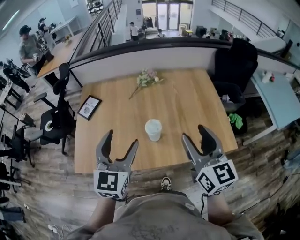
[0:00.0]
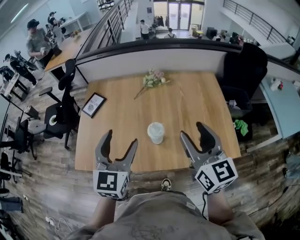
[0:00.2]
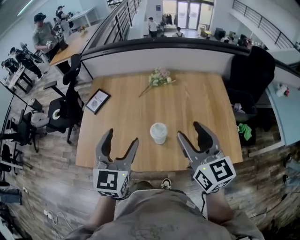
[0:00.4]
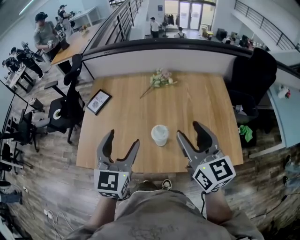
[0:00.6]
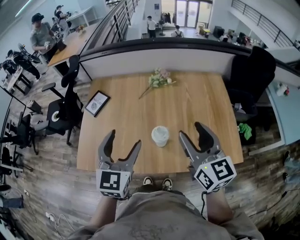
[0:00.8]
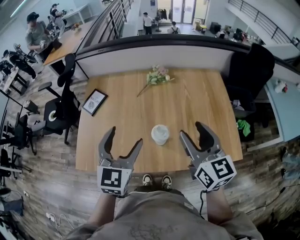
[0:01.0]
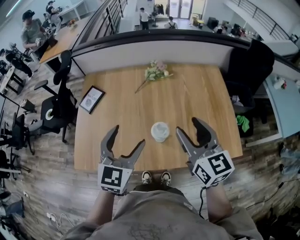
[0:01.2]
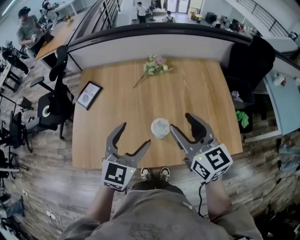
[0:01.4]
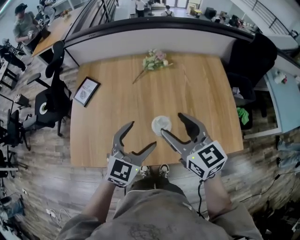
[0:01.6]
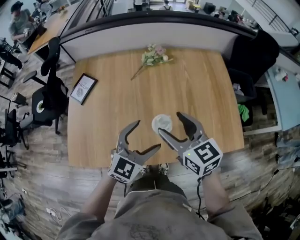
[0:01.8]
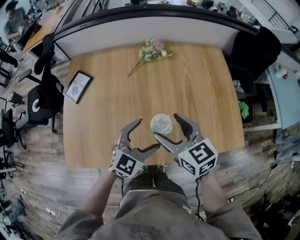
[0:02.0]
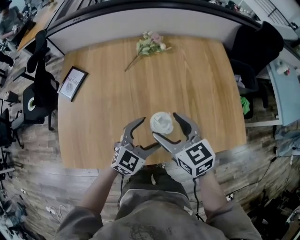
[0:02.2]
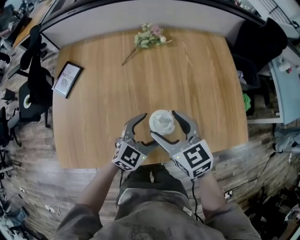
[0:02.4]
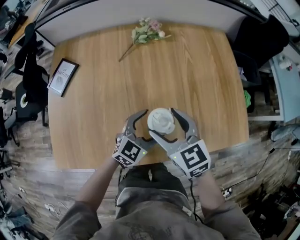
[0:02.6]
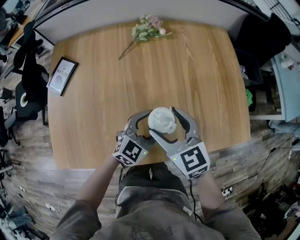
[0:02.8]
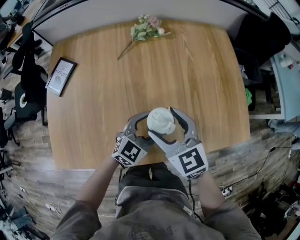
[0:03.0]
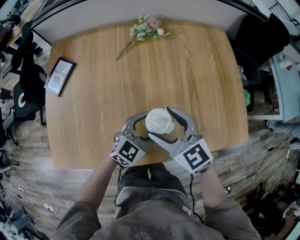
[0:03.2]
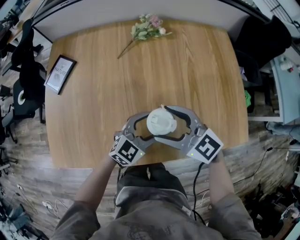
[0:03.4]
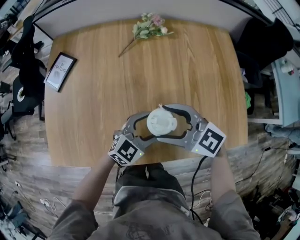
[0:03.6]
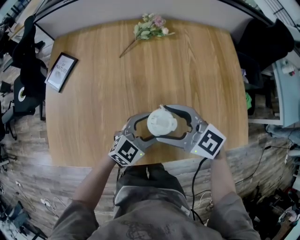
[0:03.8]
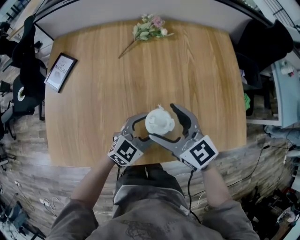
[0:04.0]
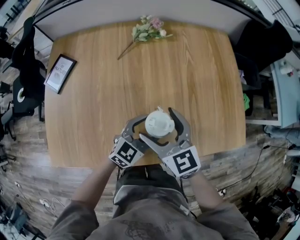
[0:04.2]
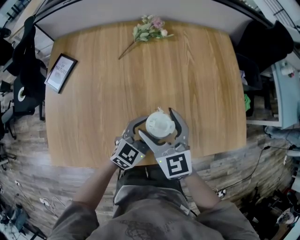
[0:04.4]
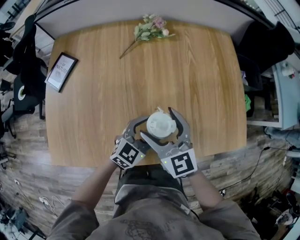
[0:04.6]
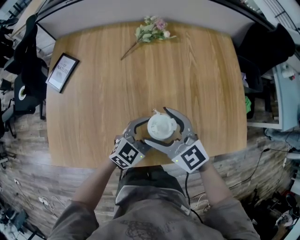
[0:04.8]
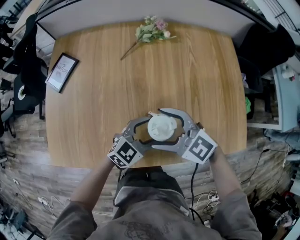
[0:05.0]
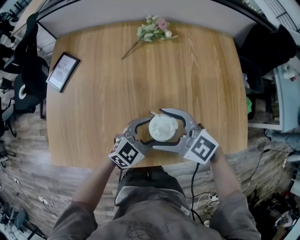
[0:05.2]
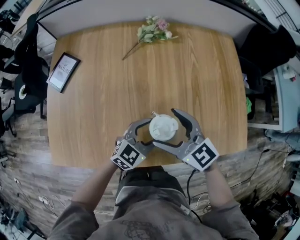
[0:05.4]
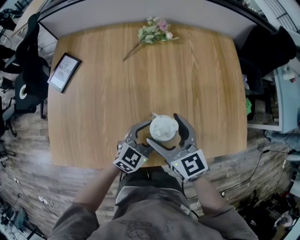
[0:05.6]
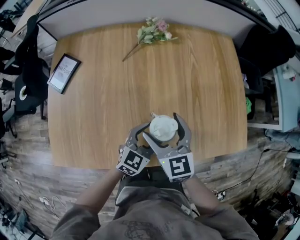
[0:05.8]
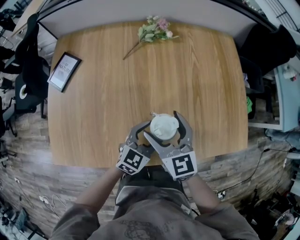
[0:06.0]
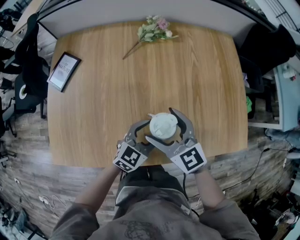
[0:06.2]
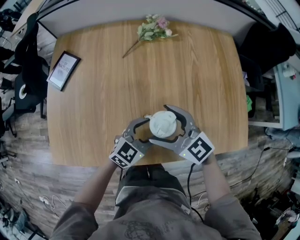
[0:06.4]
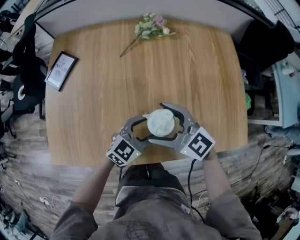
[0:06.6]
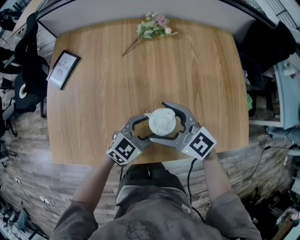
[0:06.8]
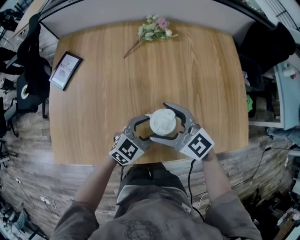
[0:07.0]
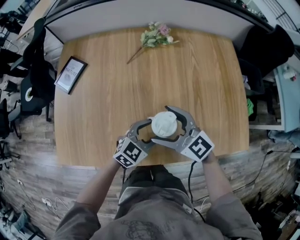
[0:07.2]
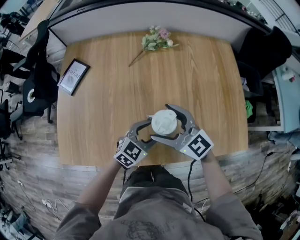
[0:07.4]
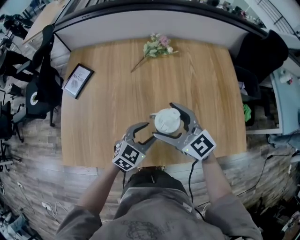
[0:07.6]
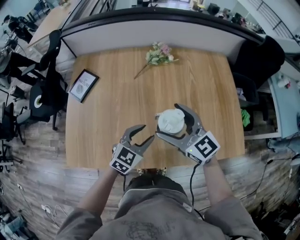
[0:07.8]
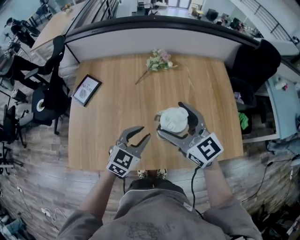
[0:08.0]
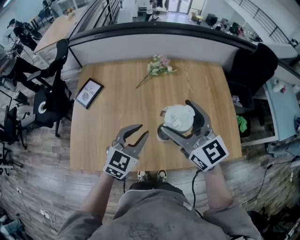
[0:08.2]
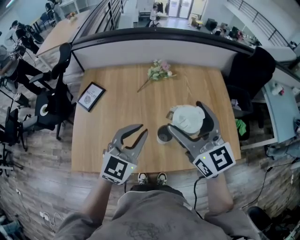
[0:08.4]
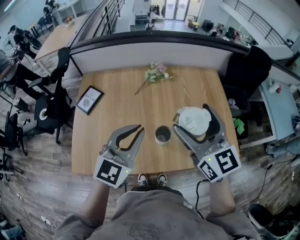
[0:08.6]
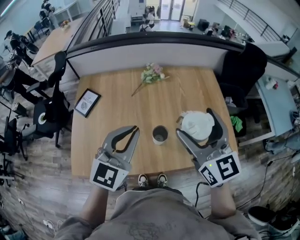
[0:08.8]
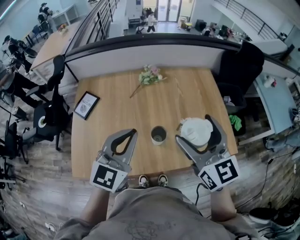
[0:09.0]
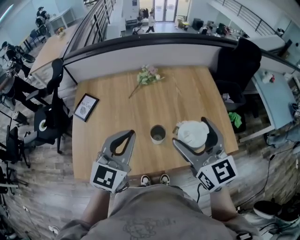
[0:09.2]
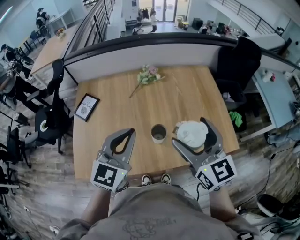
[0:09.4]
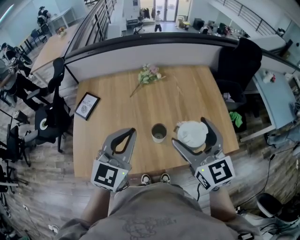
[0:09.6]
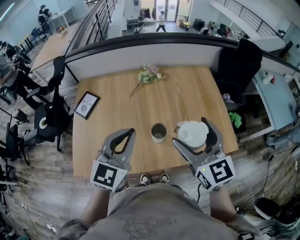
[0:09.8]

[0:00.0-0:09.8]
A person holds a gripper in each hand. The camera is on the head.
0.0 to 1.4 s: The left gripper heads downward and forward, covering roughly 10 cm. Meanwhile the right gripper travels forward and to the left by about 15 cm.
1.4 to 2.8 s: The grippers both shift downward by about 25 cm. The left gripper swivels some 30 degrees.
5.6 to 7.0 s: The right gripper changes its angle by roughly 30 degrees.
7.0 to 8.4 s: Both grippers travel together upward, roughly 30 cm. The left gripper turns by roughly 30 degrees, and closes its fingers; the right gripper rotates about 30 degrees.
8.4 to 9.8 s: The left gripper moves some 5 cm. The right gripper moves backward and to the right, about 10 cm.

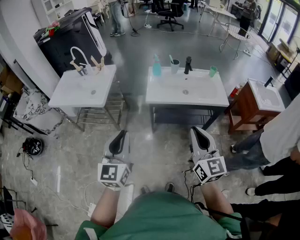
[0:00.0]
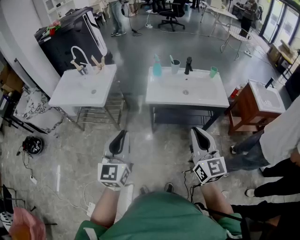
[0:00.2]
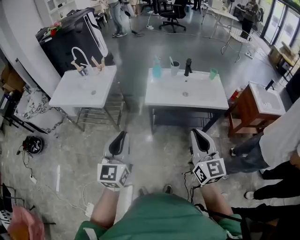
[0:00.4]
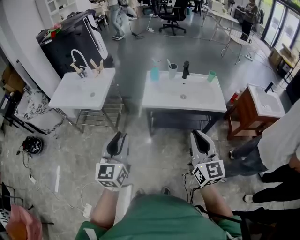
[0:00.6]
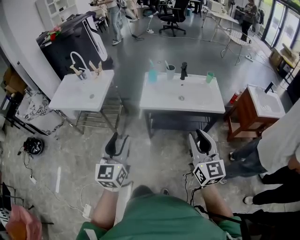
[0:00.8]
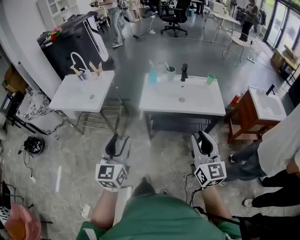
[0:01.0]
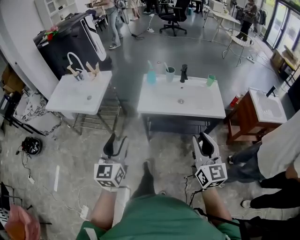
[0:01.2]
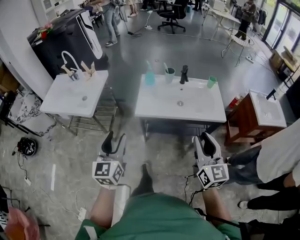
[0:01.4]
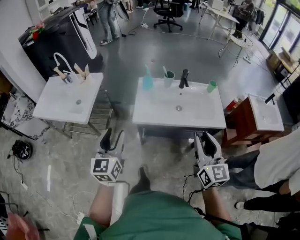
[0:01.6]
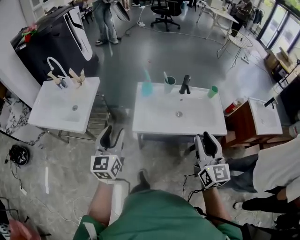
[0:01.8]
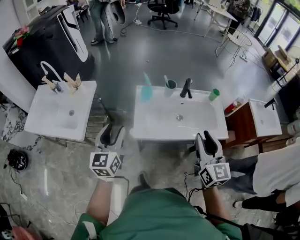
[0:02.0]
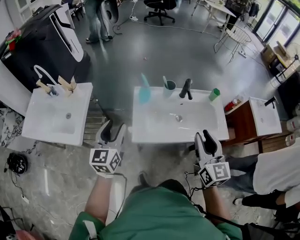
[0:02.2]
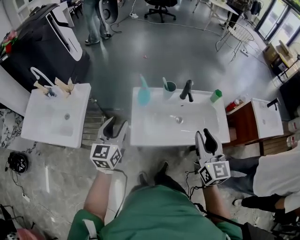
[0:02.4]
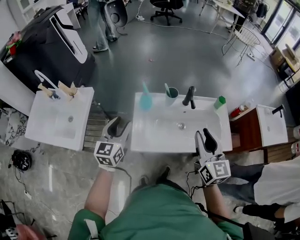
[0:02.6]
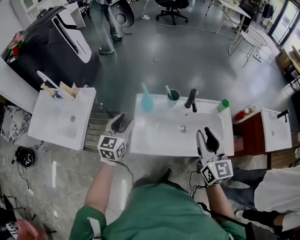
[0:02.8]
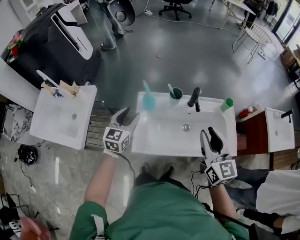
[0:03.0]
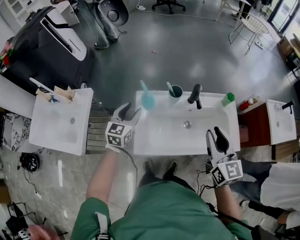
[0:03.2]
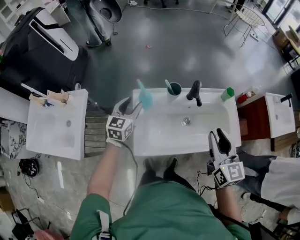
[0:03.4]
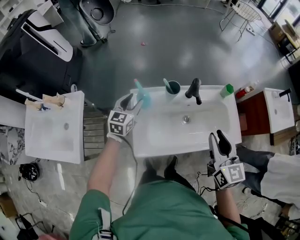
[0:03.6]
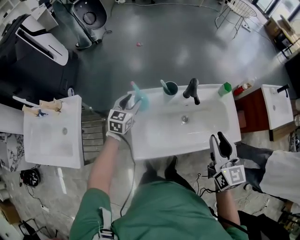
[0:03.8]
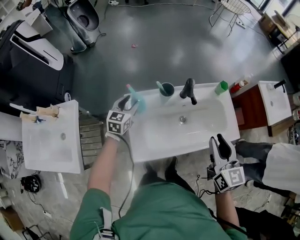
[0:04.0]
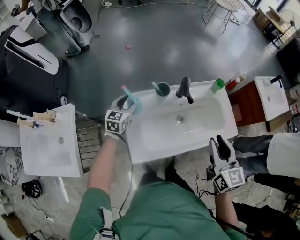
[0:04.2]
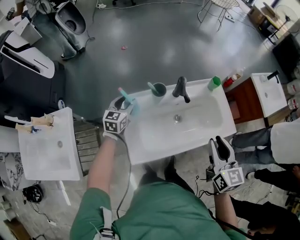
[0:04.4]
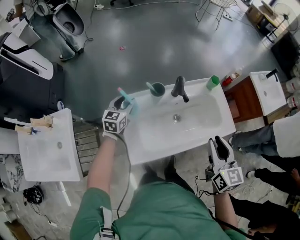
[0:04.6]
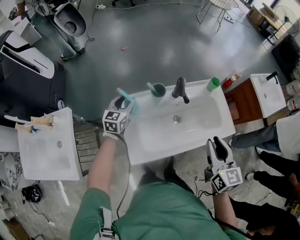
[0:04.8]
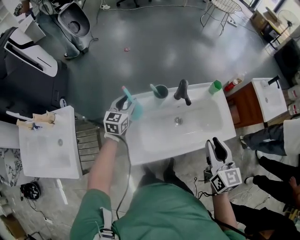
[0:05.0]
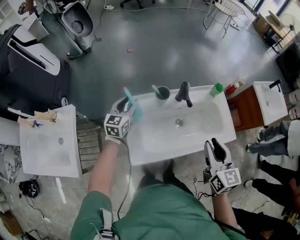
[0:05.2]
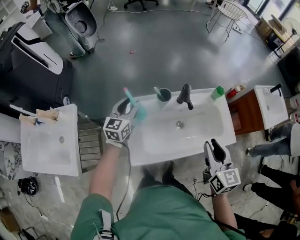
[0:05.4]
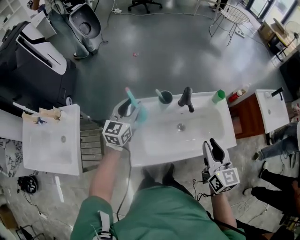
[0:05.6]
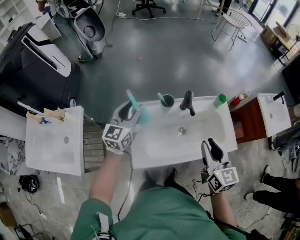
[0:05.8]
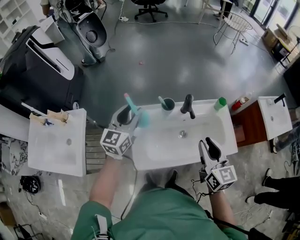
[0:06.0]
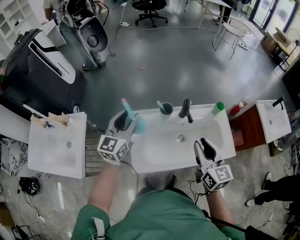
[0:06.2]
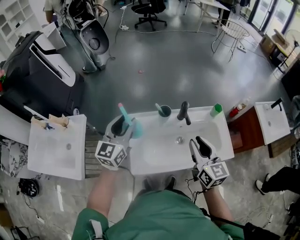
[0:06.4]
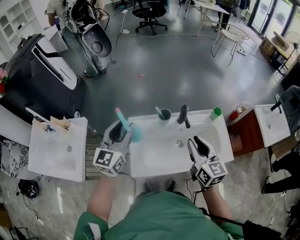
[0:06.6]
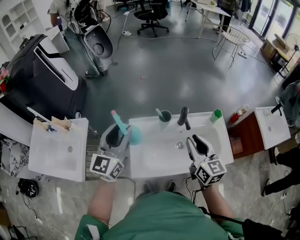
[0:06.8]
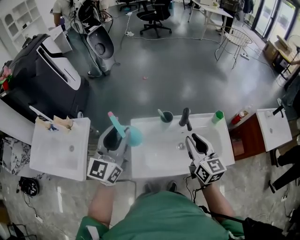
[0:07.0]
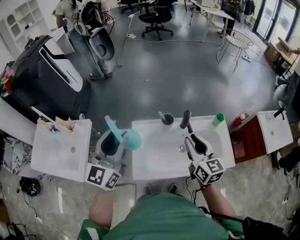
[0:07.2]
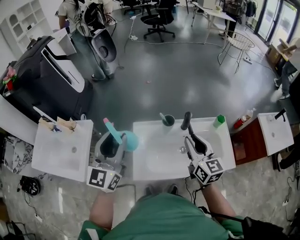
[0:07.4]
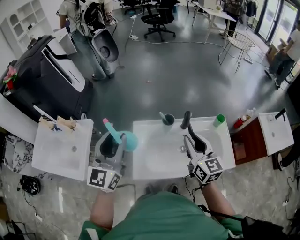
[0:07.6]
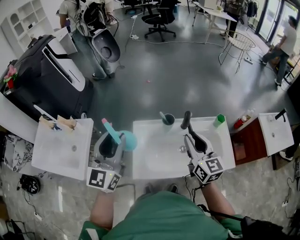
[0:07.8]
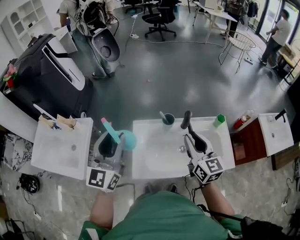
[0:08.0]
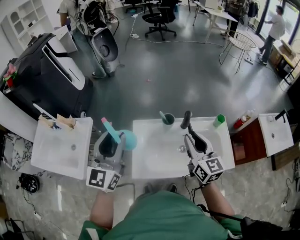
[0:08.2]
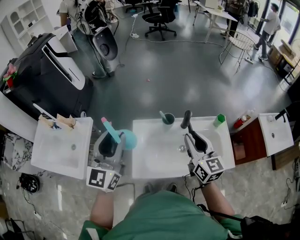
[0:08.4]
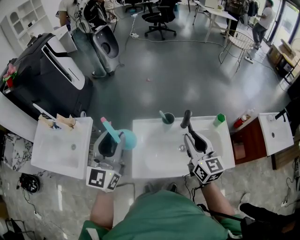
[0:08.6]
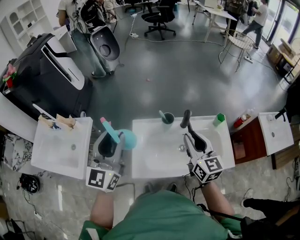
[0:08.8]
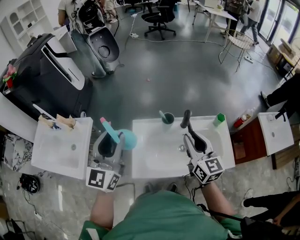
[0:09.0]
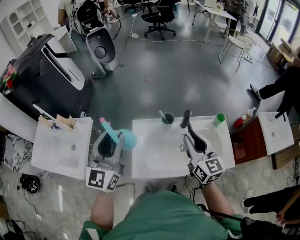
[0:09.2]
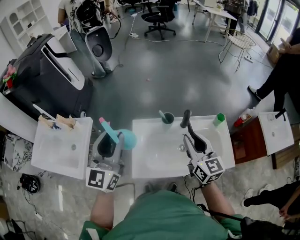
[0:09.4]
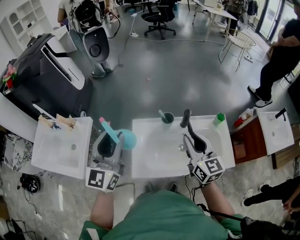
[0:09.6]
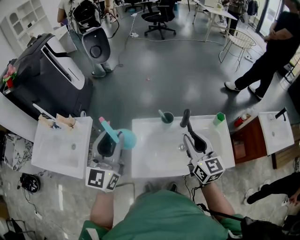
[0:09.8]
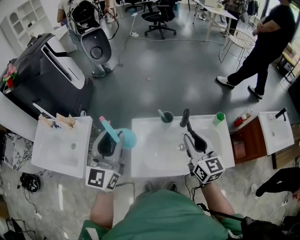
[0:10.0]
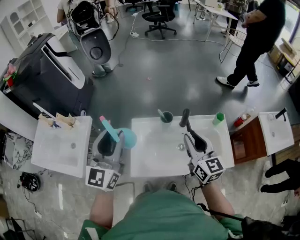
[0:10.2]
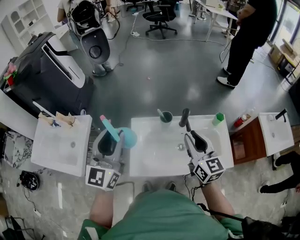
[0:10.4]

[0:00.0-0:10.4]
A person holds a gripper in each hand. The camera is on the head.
0.0 to 1.4 s: The right gripper travels to the right and forward by about 15 cm, and opens up. Meanwhile the left gripper goes some 15 cm forward, and opens up.
1.4 to 3.0 s: The grippers both shift forward by about 40 cm.
3.0 to 4.4 s: The left gripper is displaced forward and downward by roughly 20 cm. Meanwhile the right gripper heads downward, covering roughly 5 cm, and rotates approximately 20 degrees.
4.4 to 6.0 s: The right gripper shifts by roughly 5 cm. Meanwhile the left gripper moves upward, approximately 20 cm, and swivels some 20 degrees.
6.0 to 7.4 s: The right gripper ends up about 5 cm from where it was, while the left gripper is displaced upward and backward by approximately 20 cm.
7.4 to 9.0 s: The two grippers keep their place.
9.0 to 10.4 s: The two grippers keep their place.

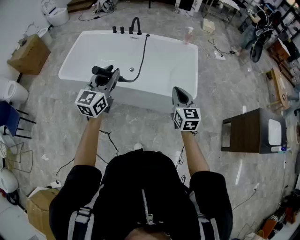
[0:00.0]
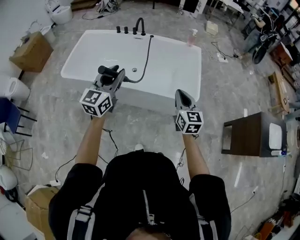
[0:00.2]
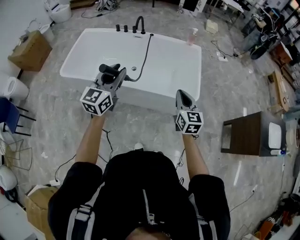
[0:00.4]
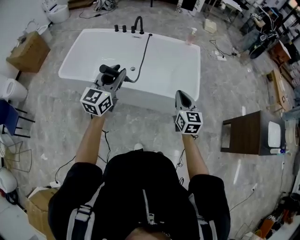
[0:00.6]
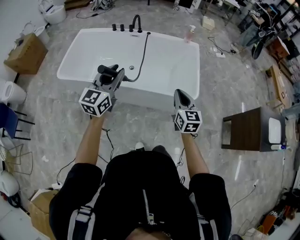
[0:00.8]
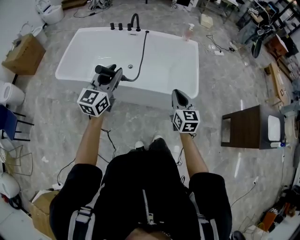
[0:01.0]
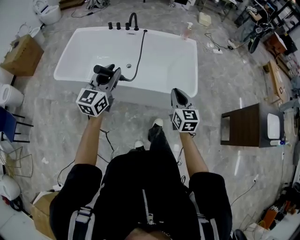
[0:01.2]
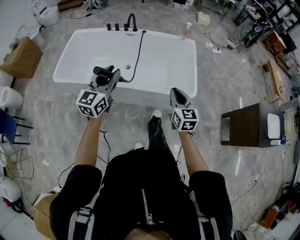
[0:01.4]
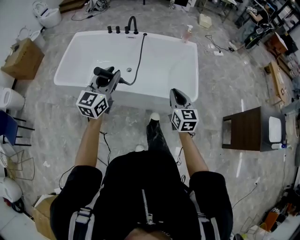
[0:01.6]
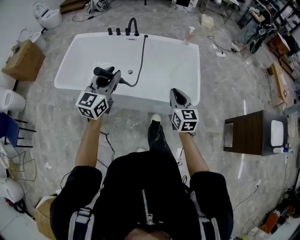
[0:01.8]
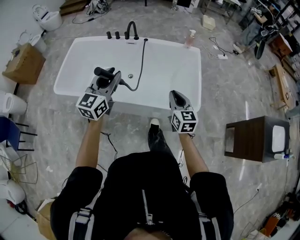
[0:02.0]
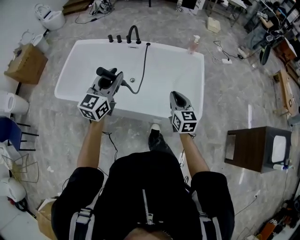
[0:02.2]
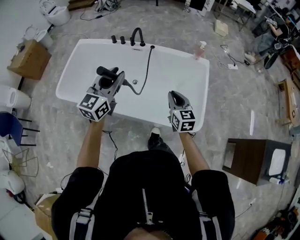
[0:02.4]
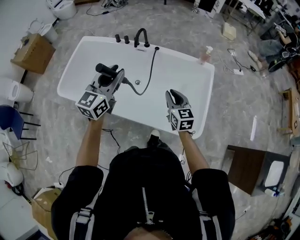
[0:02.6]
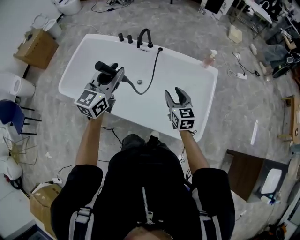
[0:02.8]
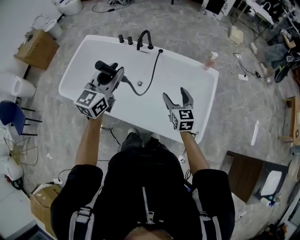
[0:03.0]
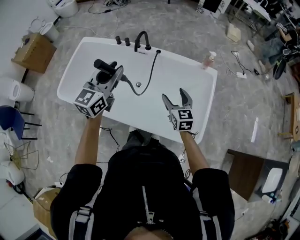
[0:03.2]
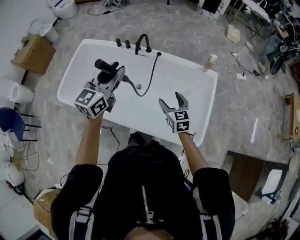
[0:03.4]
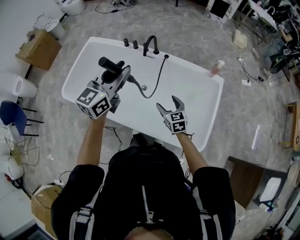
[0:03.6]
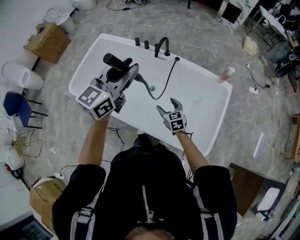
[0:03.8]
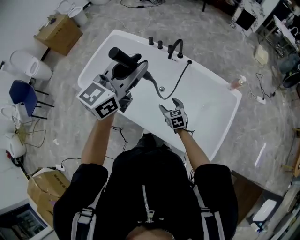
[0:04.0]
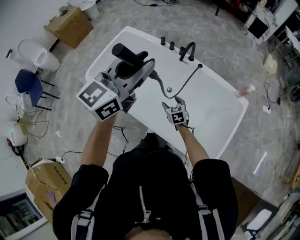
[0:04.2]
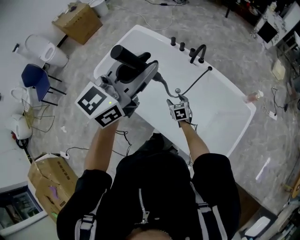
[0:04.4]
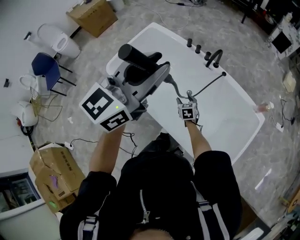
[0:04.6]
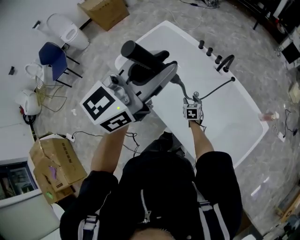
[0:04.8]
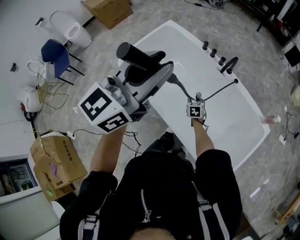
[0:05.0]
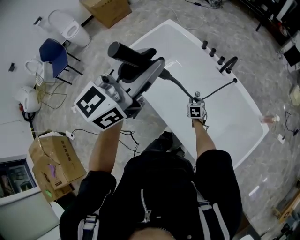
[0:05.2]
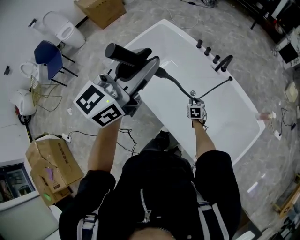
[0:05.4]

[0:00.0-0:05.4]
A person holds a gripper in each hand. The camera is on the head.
0.0 to 1.4 s: The left gripper changes place by roughly 5 cm.
1.4 to 2.8 s: Both grippers travel together forward, about 30 cm. The right gripper opens.
2.8 to 4.0 s: The right gripper goes some 20 cm to the left and downward, changes its angle by about 30 degrees, and opens its fingers, while the left gripper goes approximately 10 cm upward and forward.
4.0 to 5.4 s: The right gripper is displaced downward, forward and to the left by some 15 cm, and closes up. The left gripper heads to the left, covering roughly 15 cm.
